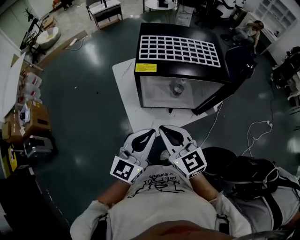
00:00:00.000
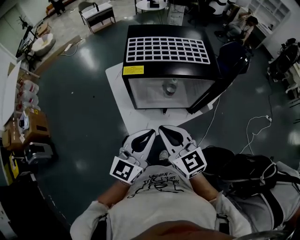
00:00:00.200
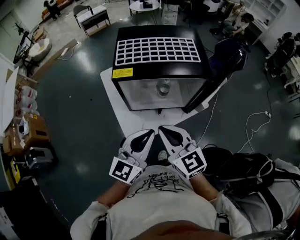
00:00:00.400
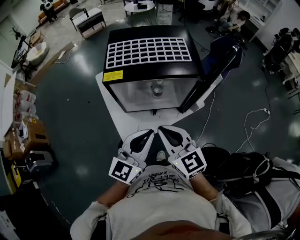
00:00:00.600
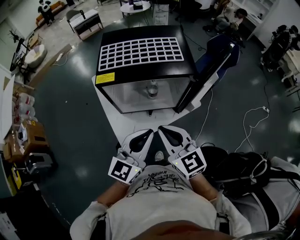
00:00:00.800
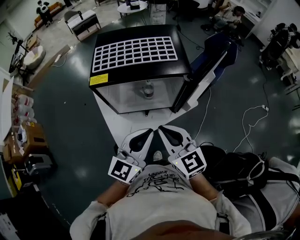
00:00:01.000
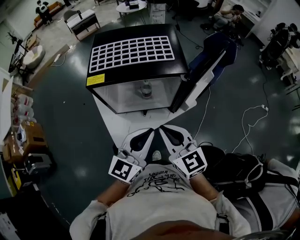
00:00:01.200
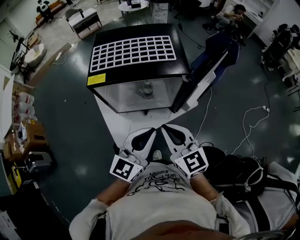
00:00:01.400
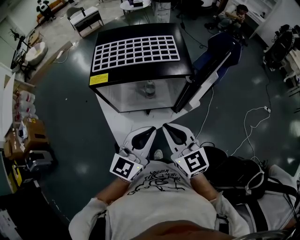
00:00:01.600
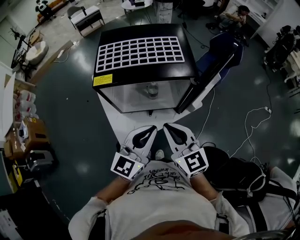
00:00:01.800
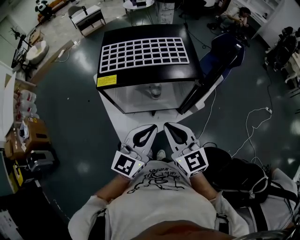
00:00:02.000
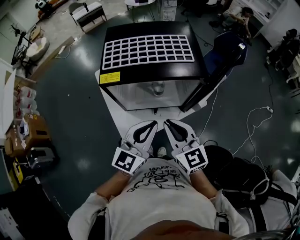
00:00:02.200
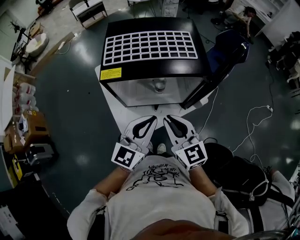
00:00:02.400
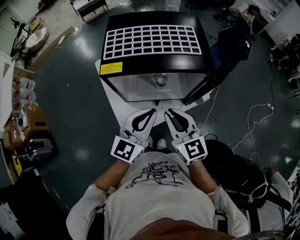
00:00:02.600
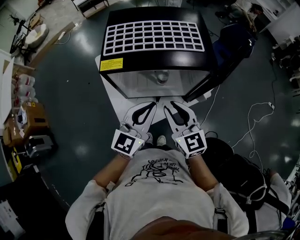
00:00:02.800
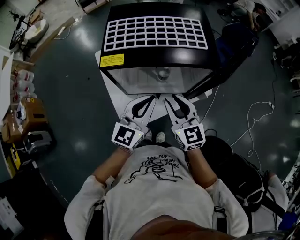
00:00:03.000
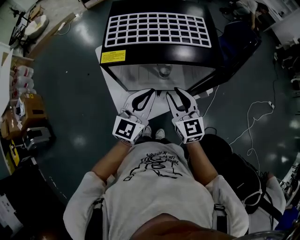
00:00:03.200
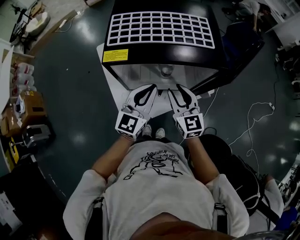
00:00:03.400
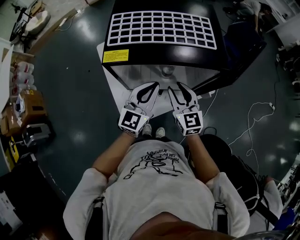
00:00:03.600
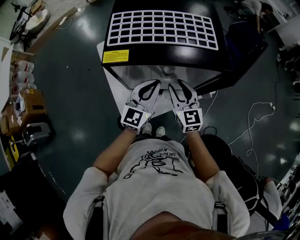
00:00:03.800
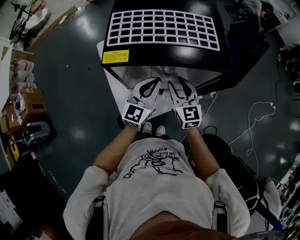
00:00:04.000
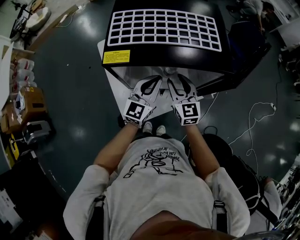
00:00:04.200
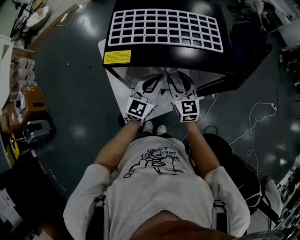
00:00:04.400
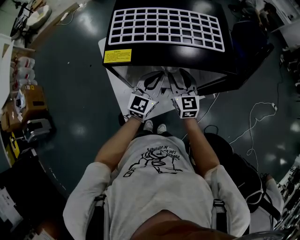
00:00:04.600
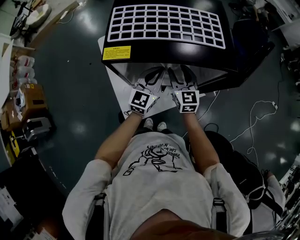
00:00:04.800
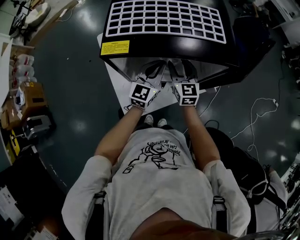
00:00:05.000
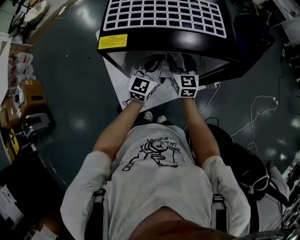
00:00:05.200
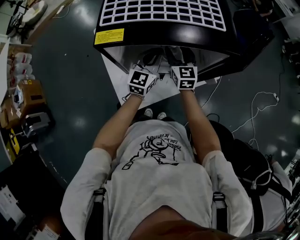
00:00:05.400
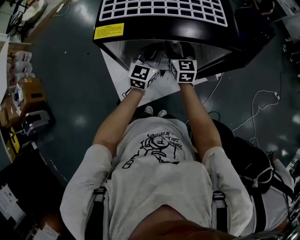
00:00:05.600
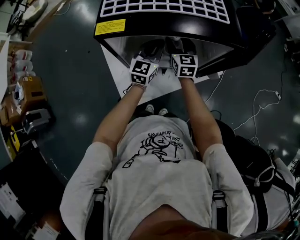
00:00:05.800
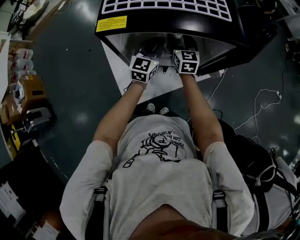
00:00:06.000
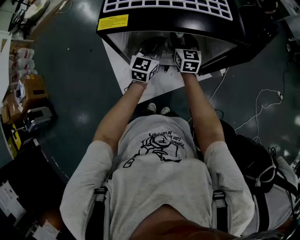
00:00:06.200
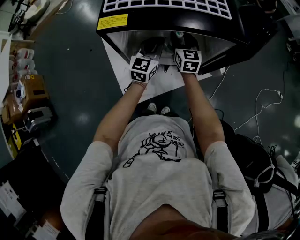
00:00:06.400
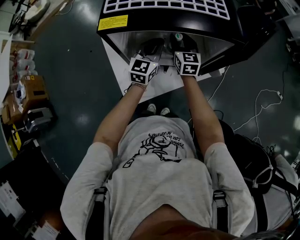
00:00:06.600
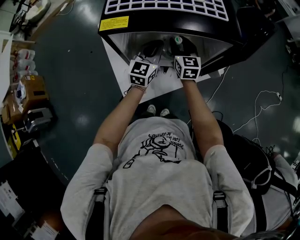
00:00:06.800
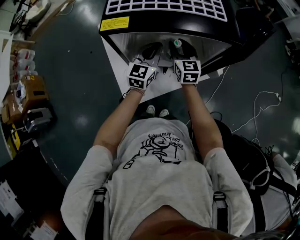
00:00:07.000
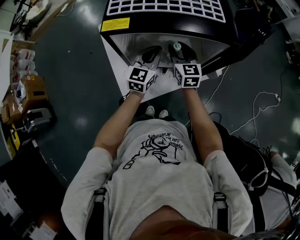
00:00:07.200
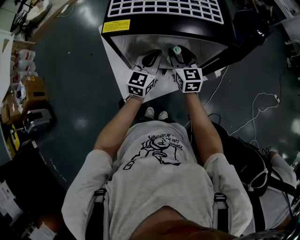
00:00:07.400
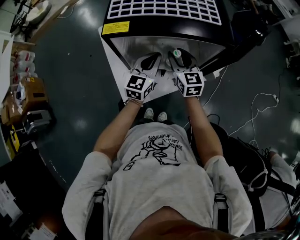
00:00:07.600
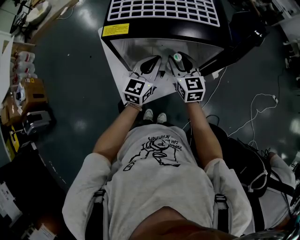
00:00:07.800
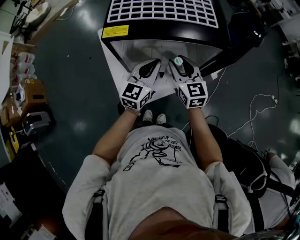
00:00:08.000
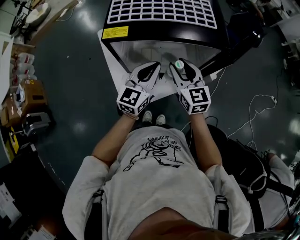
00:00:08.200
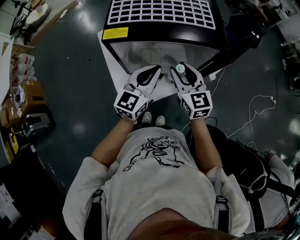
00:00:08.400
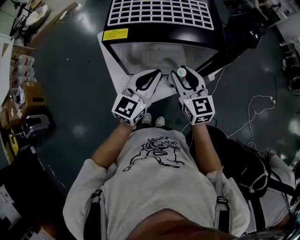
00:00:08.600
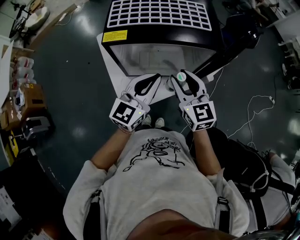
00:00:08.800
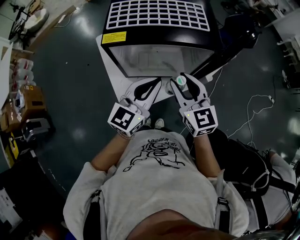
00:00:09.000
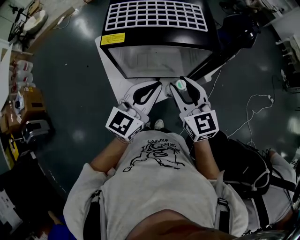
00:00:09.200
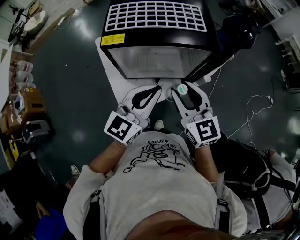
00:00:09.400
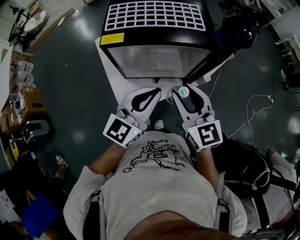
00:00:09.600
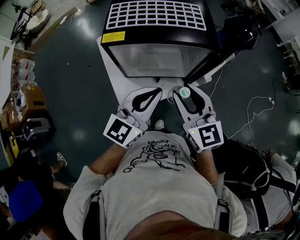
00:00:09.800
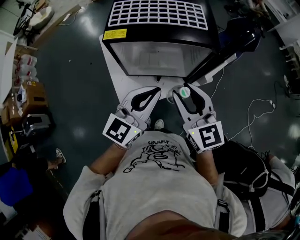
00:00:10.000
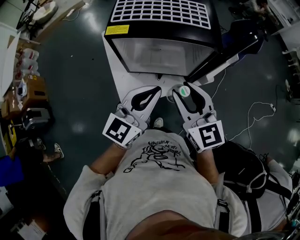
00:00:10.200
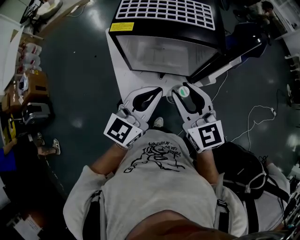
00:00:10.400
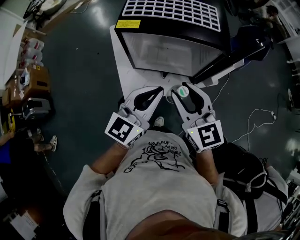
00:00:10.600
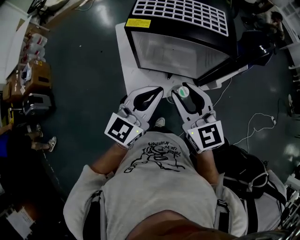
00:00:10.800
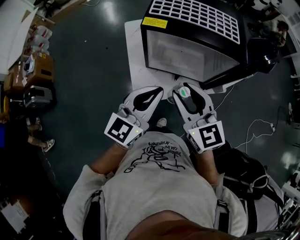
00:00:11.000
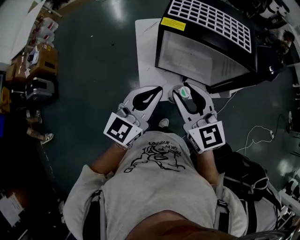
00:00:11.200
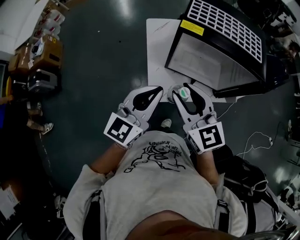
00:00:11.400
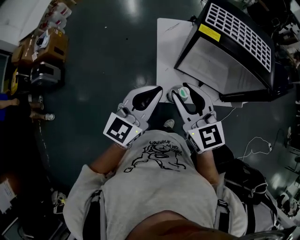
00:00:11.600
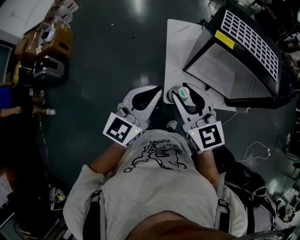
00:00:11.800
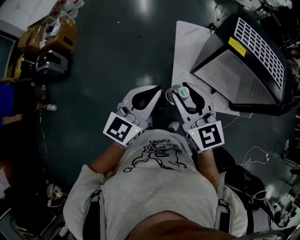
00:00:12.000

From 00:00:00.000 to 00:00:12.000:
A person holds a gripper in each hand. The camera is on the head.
From 00:00:00.000 to 00:00:01.600: Both grippers move to the right, roughly 20 cm.
From 00:00:01.600 to 00:00:03.000: The left gripper goes roughly 10 cm forward and to the left; the right gripper heads forward, downward and to the left, covering about 10 cm.
From 00:00:03.000 to 00:00:04.400: The grippers both shift forward and downward by approximately 15 cm.
From 00:00:04.400 to 00:00:06.000: The left gripper is displaced downward and forward by approximately 10 cm. Meanwhile the right gripper moves forward and downward, approximately 10 cm.
From 00:00:06.000 to 00:00:07.600: The right gripper is displaced backward and upward by some 10 cm. Meanwhile the left gripper heads backward, covering roughly 5 cm.
From 00:00:07.600 to 00:00:09.000: The grippers both shift upward and backward by roughly 15 cm.
From 00:00:09.000 to 00:00:10.400: The grippers both shift backward by about 5 cm.
From 00:00:10.400 to 00:00:12.000: The grippers both shift to the left by some 35 cm. The right gripper rotates some 20 degrees; the left gripper rotates about 20 degrees.

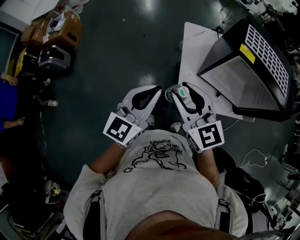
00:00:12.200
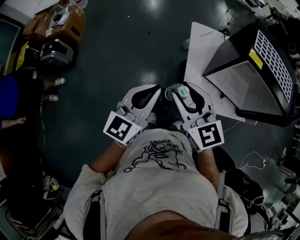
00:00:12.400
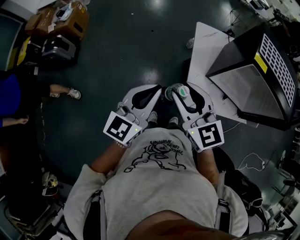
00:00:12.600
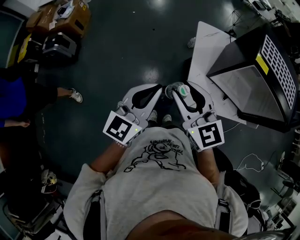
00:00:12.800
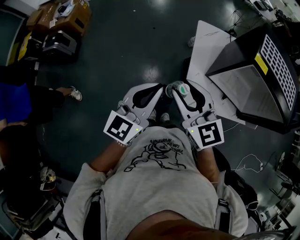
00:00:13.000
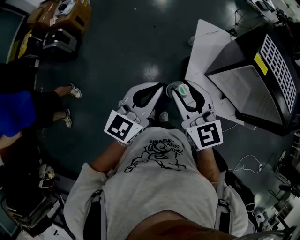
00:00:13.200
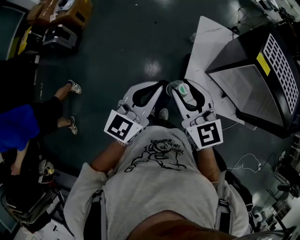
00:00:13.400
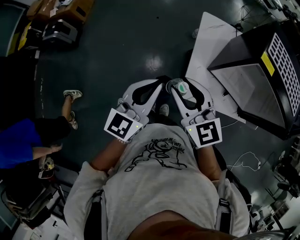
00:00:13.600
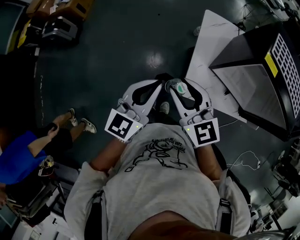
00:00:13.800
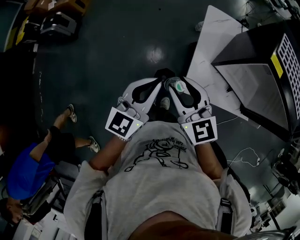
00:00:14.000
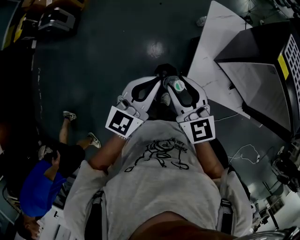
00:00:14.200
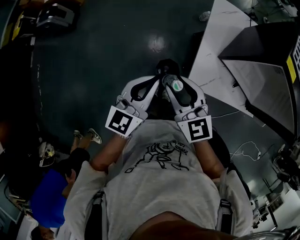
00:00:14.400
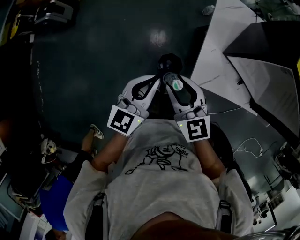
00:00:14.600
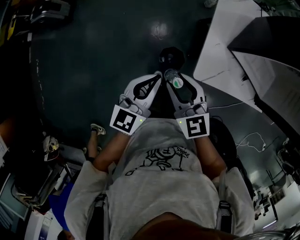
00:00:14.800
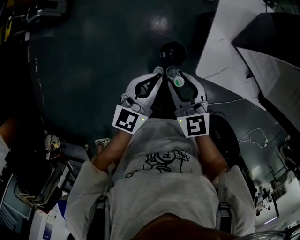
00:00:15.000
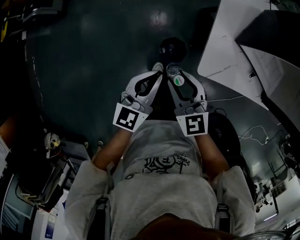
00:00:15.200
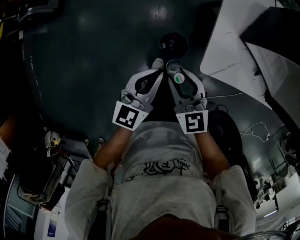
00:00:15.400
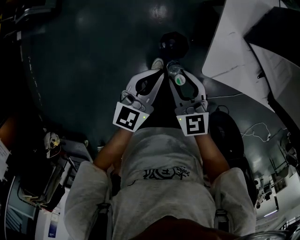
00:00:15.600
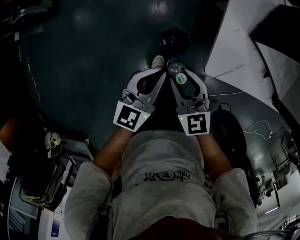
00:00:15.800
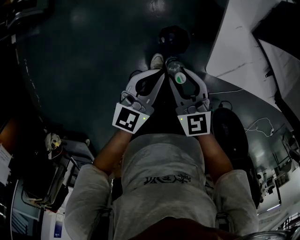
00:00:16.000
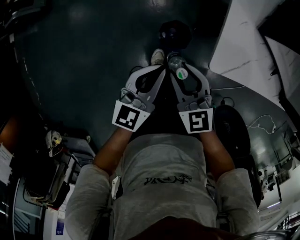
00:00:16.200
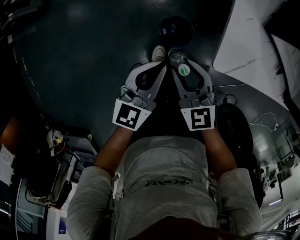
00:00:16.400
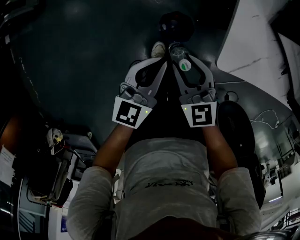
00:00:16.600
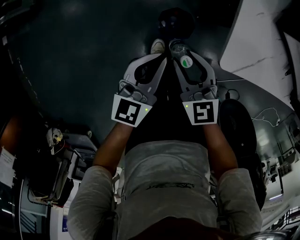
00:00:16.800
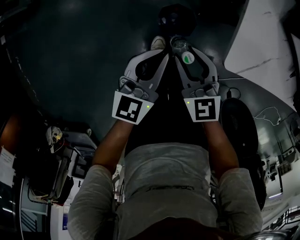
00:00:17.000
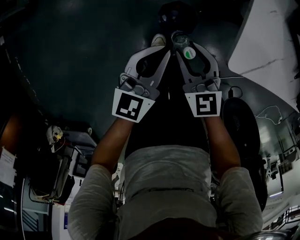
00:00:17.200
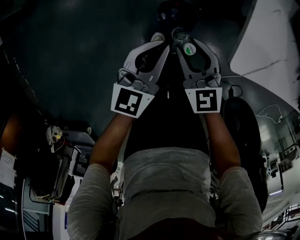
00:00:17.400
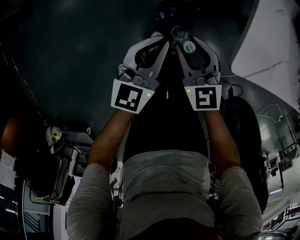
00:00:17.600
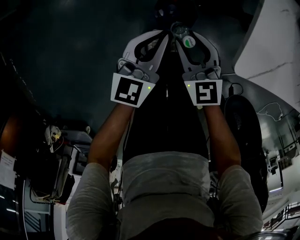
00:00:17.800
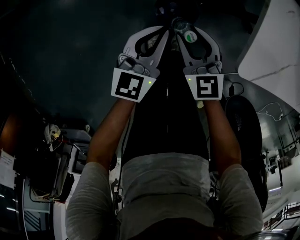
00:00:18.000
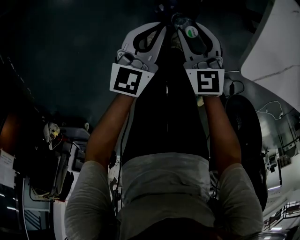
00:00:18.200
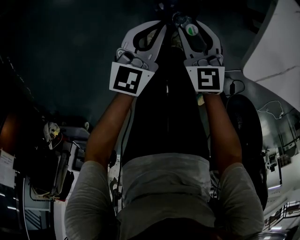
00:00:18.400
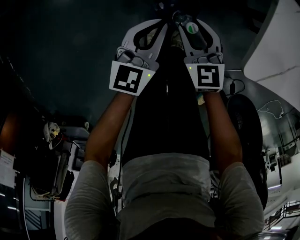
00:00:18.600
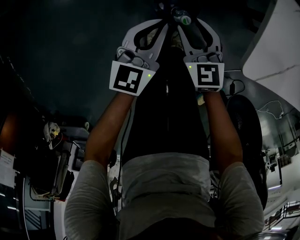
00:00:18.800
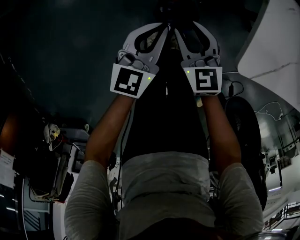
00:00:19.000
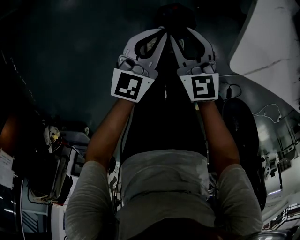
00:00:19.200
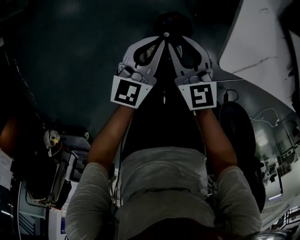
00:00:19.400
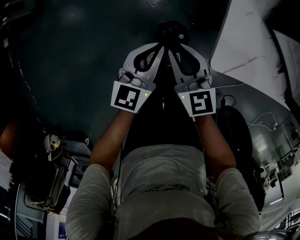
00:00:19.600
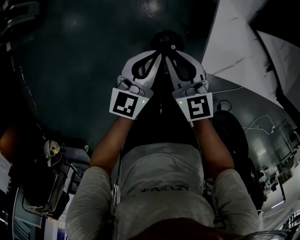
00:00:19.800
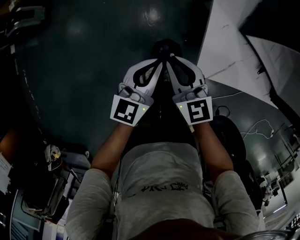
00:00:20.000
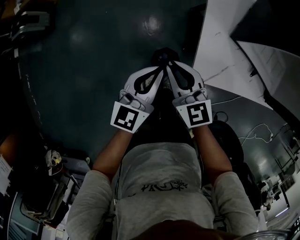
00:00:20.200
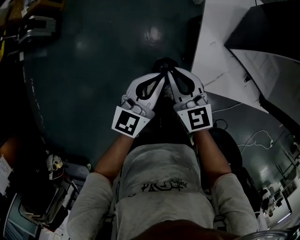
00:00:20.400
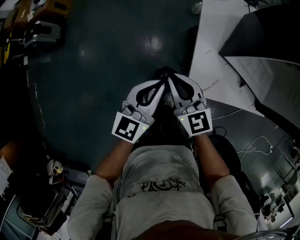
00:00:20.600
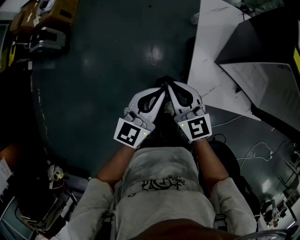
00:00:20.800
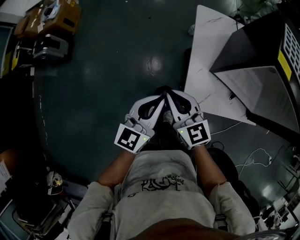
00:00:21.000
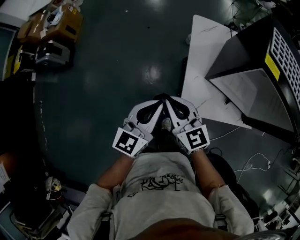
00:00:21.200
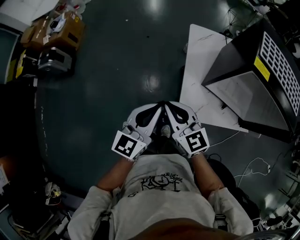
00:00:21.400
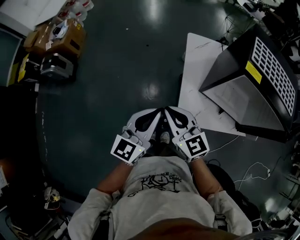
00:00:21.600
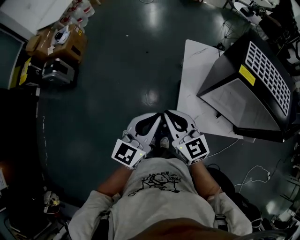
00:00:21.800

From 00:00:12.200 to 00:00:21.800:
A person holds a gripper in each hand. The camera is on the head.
From 00:00:12.200 to 00:00:13.800: The two grippers go roughly 5 cm downward.
From 00:00:13.800 to 00:00:15.400: Both grippers move downward, some 25 cm.
From 00:00:15.400 to 00:00:17.000: The two grippers go about 20 cm downward.
From 00:00:17.000 to 00:00:18.600: The grippers both shift downward by some 15 cm.
From 00:00:18.600 to 00:00:20.200: The two grippers go some 30 cm upward. The right gripper closes up.
From 00:00:20.200 to 00:00:21.800: The two grippers go approximately 25 cm upward.

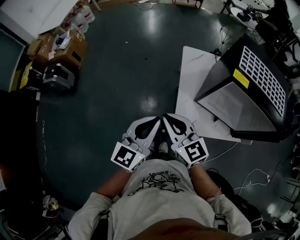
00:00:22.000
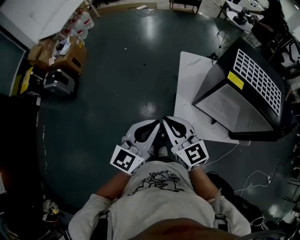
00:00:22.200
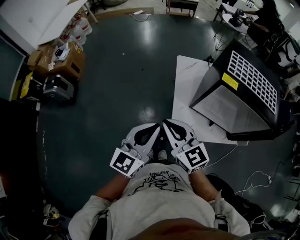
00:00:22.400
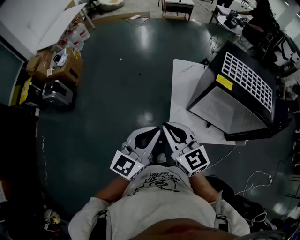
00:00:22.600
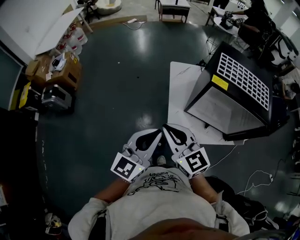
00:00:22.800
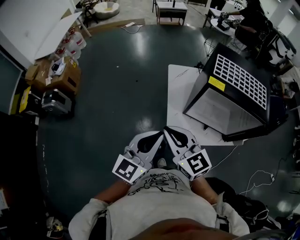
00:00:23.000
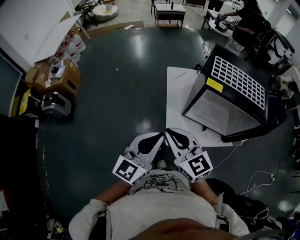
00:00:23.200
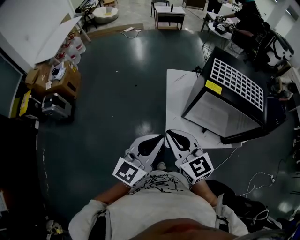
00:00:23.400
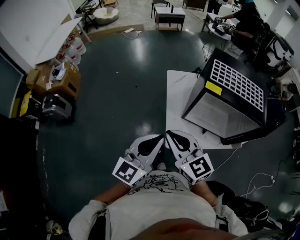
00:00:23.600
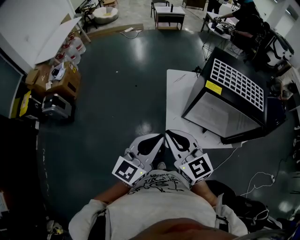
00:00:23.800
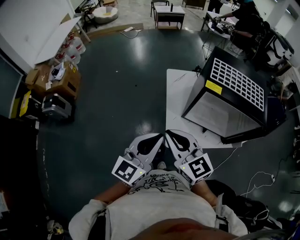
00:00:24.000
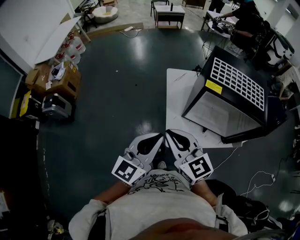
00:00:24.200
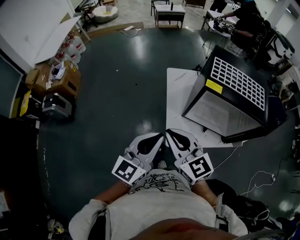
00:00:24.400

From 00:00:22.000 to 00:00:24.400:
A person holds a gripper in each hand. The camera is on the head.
From 00:00:22.000 to 00:00:23.200: The right gripper travels upward by some 10 cm. Meanwhile the left gripper is displaced upward and to the right by some 10 cm.
From 00:00:23.200 to 00:00:24.400: Both grippers stay about where they are.
